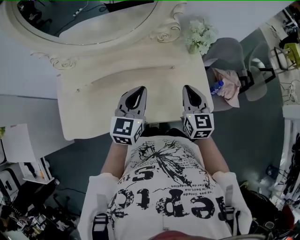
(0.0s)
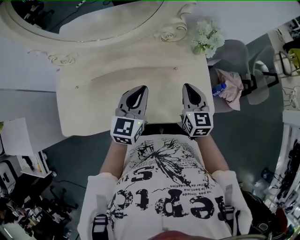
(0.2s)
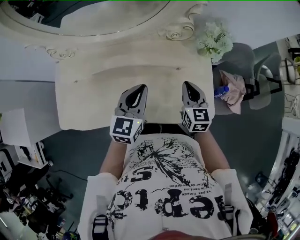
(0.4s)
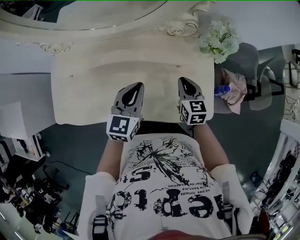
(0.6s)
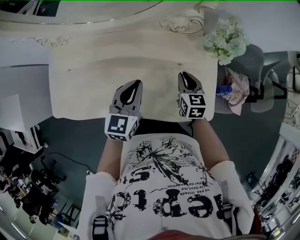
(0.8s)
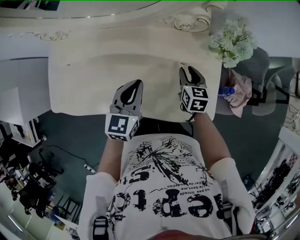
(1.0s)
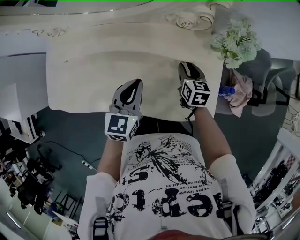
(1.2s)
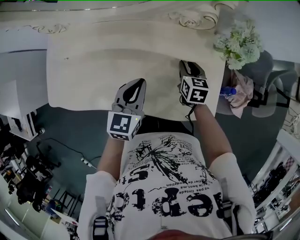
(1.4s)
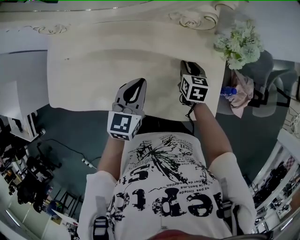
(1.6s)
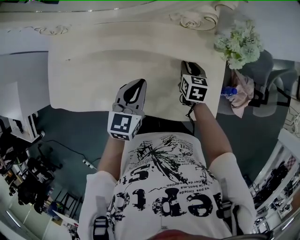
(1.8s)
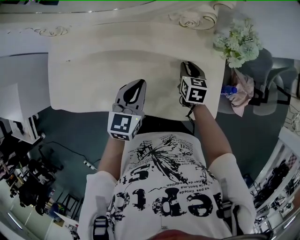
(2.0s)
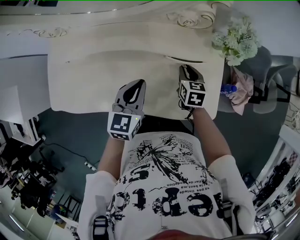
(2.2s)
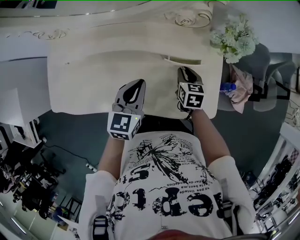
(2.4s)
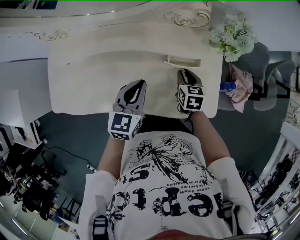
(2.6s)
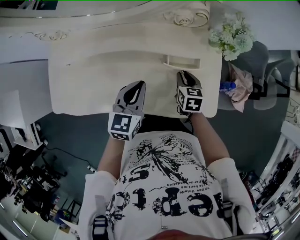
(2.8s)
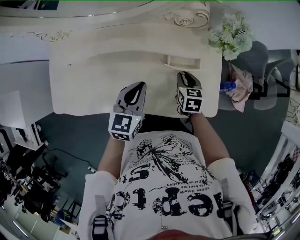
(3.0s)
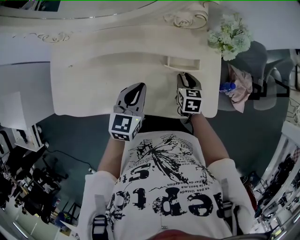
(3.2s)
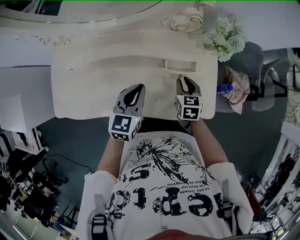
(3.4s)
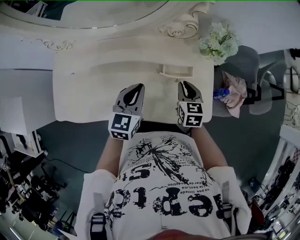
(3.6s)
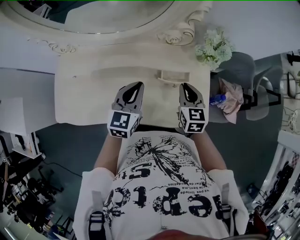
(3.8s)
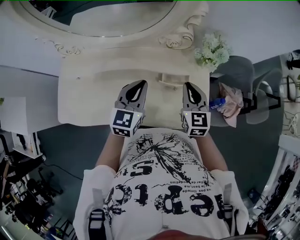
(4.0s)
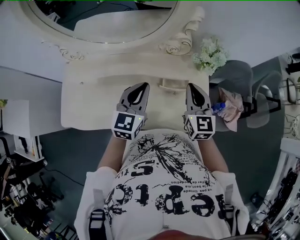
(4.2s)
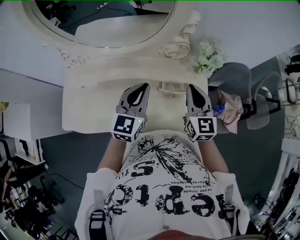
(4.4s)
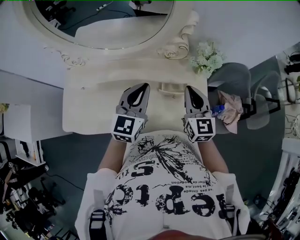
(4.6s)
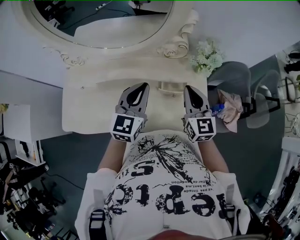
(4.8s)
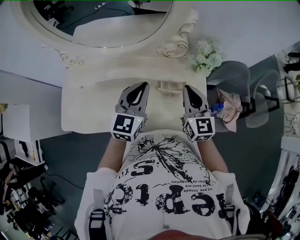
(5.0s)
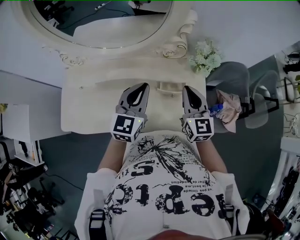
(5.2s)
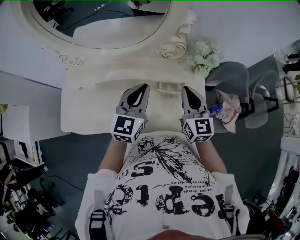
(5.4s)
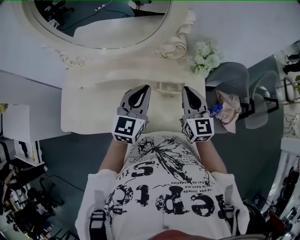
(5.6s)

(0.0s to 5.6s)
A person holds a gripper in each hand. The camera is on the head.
0.0s - 1.4s: The right gripper moves downward and forward, some 25 cm, turns by some 30 degrees, and opens its fingers, while the left gripper moves downward, about 10 cm.
1.4s - 2.8s: The right gripper shifts some 5 cm backward.
2.8s - 4.2s: The right gripper heads upward, covering about 25 cm, and points its fingers roughly 30 degrees further upward, while the left gripper goes roughly 10 cm upward.
4.2s - 5.6s: The grippers make only small movements.

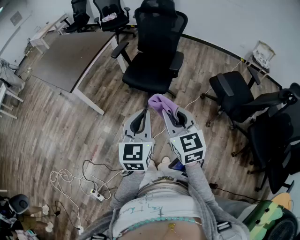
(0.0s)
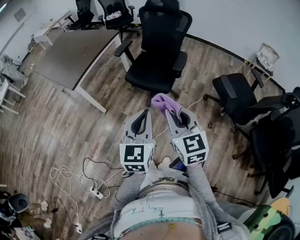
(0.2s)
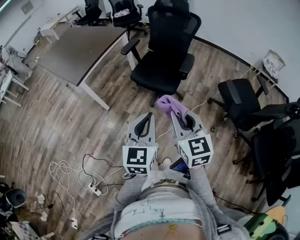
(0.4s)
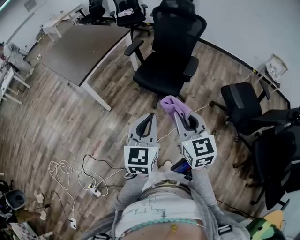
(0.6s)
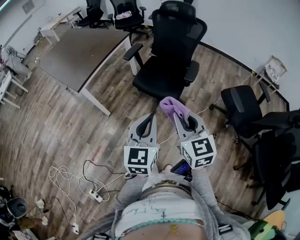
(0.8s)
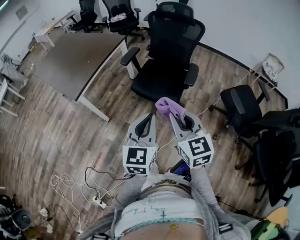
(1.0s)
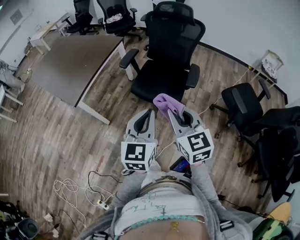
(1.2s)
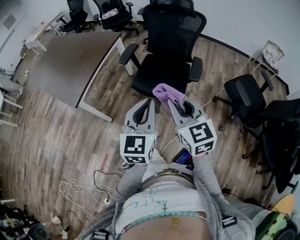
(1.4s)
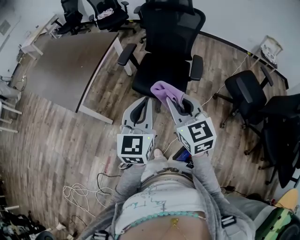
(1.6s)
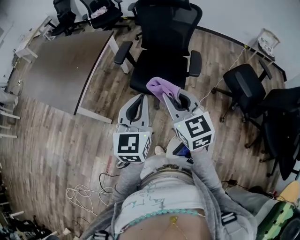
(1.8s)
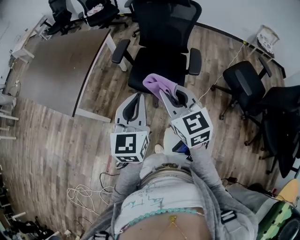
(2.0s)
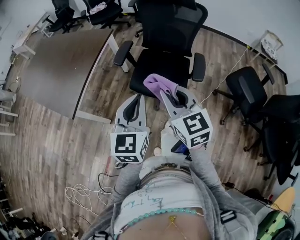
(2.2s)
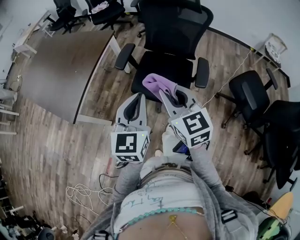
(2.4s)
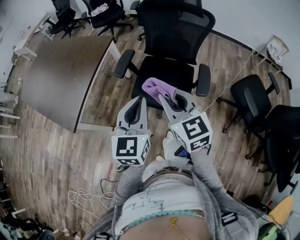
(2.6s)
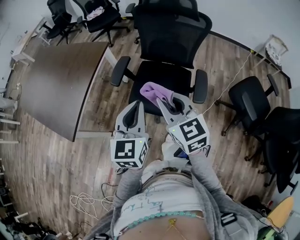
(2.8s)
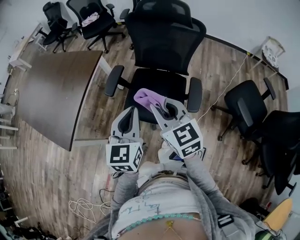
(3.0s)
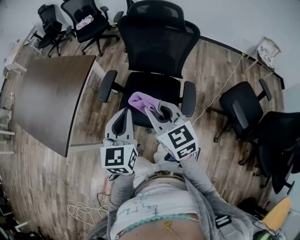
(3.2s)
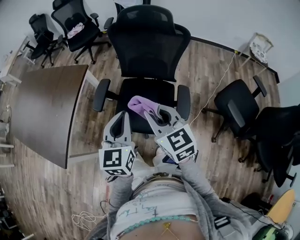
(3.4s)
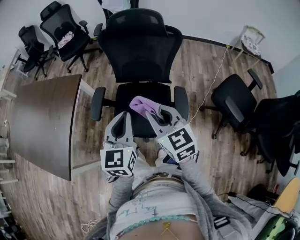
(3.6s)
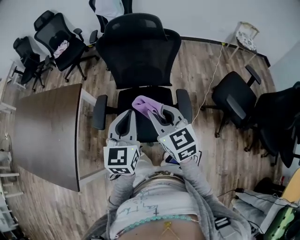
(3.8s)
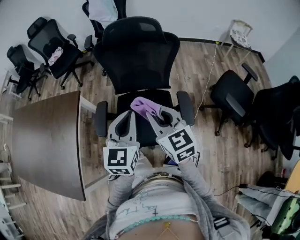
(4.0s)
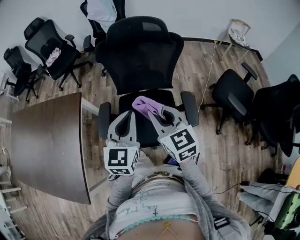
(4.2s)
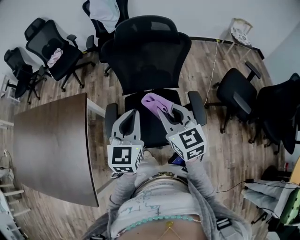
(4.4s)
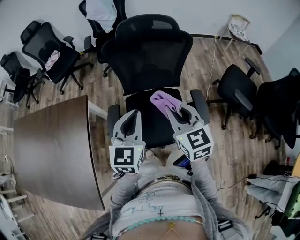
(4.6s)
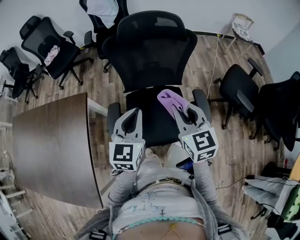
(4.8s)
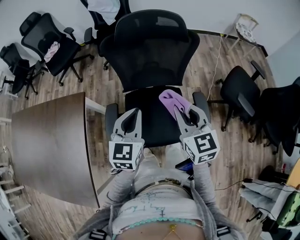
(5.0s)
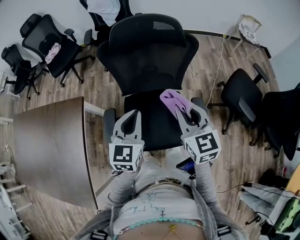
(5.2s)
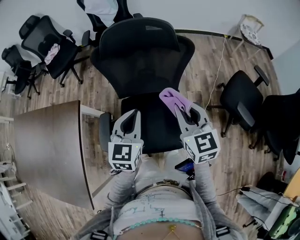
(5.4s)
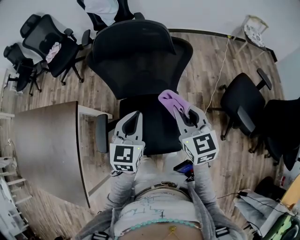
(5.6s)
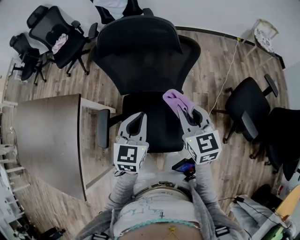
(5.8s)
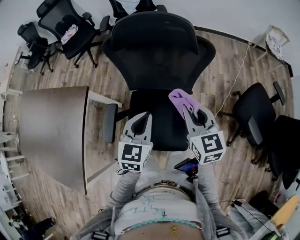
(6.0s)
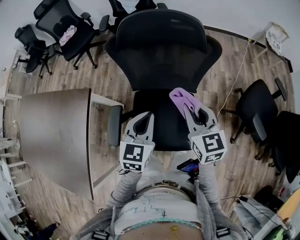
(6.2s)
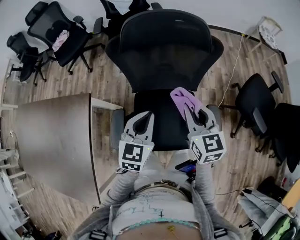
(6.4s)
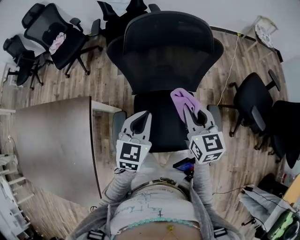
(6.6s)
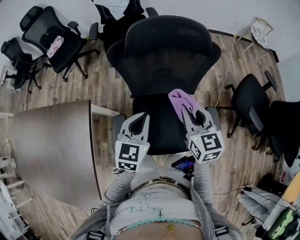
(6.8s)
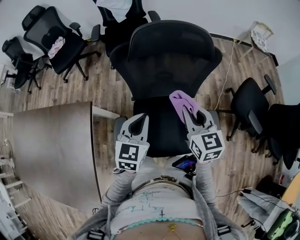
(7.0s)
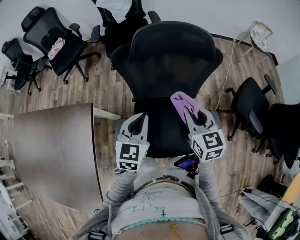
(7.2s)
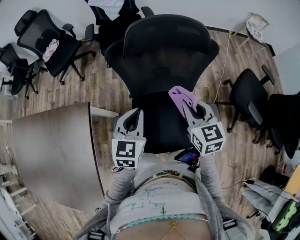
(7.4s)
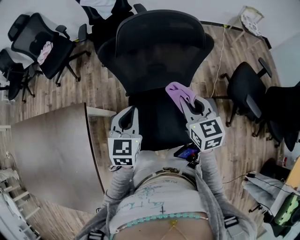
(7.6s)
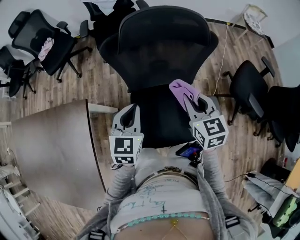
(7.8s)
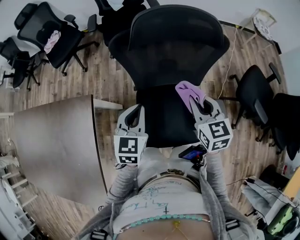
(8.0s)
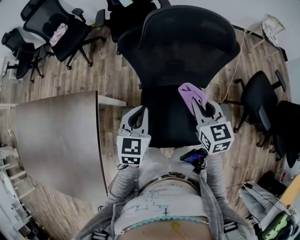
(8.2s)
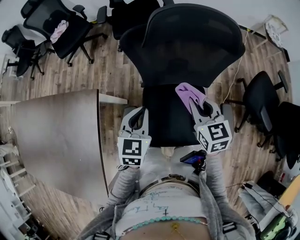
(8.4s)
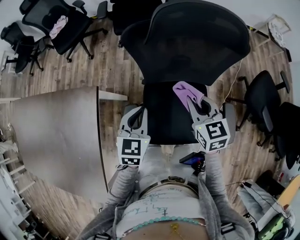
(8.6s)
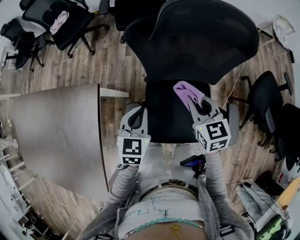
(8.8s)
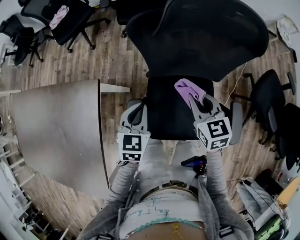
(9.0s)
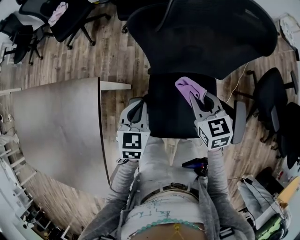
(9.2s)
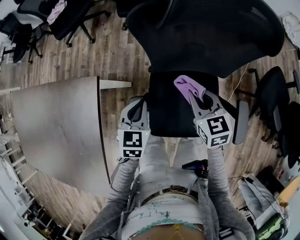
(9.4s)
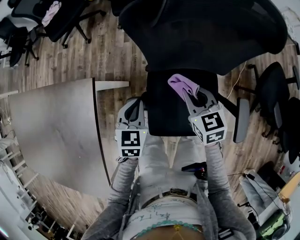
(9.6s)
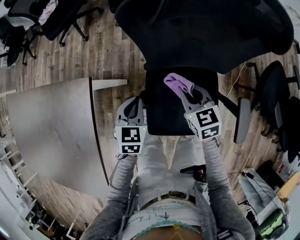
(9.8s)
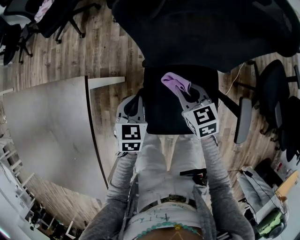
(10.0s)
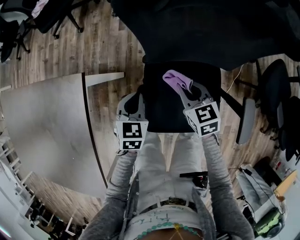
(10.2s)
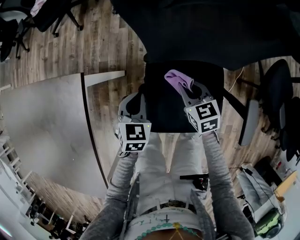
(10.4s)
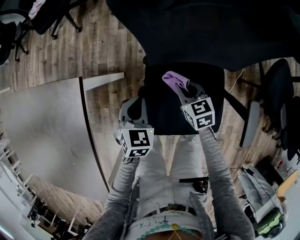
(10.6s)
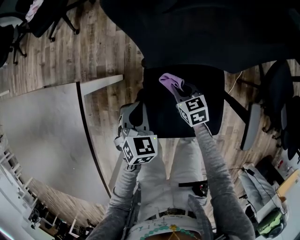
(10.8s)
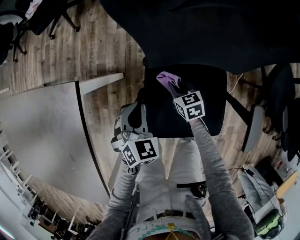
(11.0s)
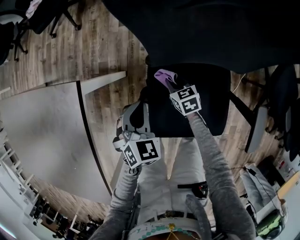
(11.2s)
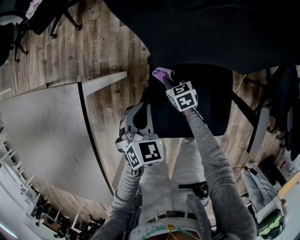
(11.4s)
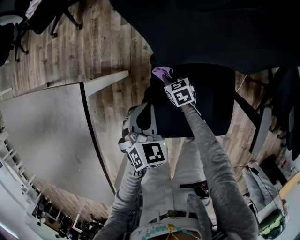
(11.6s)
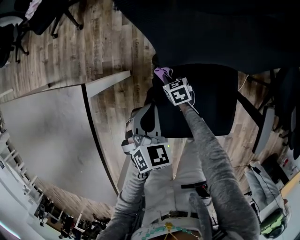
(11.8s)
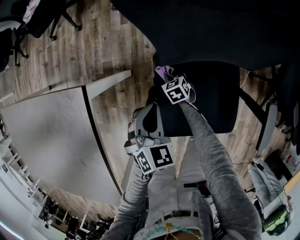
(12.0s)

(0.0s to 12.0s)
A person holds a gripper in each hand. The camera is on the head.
0.0s - 1.6s: The grippers both shift forward by roughly 25 cm.
1.6s - 3.0s: Both grippers move forward, approximately 25 cm.
3.0s - 4.4s: The left gripper shifts by about 20 cm, and rotates roughly 30 degrees. The right gripper shifts by roughly 15 cm, and swivels some 30 degrees.
4.4s - 6.0s: The right gripper shifts roughly 20 cm forward, to the right and downward; the left gripper moves forward, downward and to the right, some 15 cm.
6.0s - 7.6s: The right gripper travels to the left by roughly 10 cm. Meanwhile the left gripper goes roughly 15 cm to the left.
7.6s - 9.0s: The two grippers go approximately 10 cm downward and to the left.
9.0s - 10.4s: The grippers both shift downward by about 15 cm.
10.4s - 12.0s: The right gripper travels downward by roughly 25 cm.

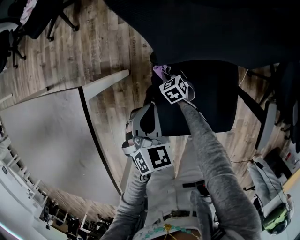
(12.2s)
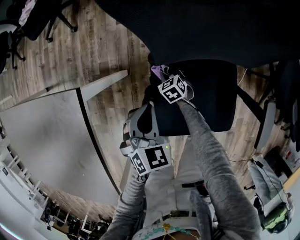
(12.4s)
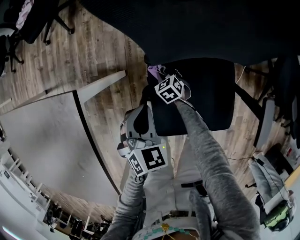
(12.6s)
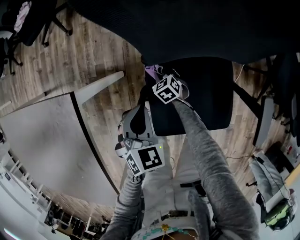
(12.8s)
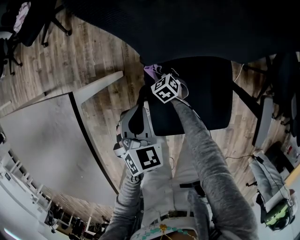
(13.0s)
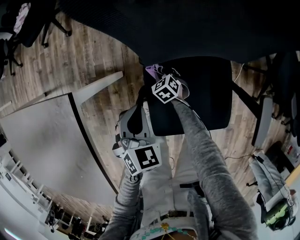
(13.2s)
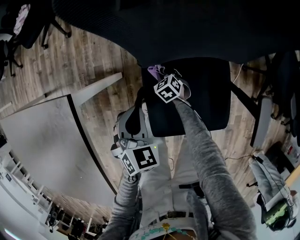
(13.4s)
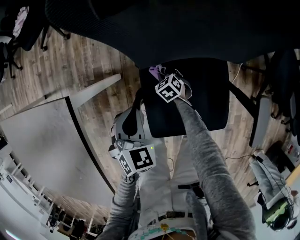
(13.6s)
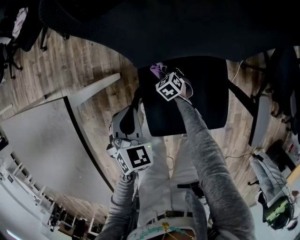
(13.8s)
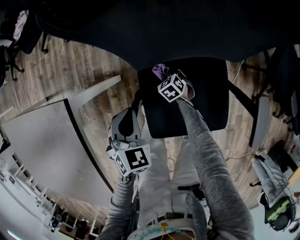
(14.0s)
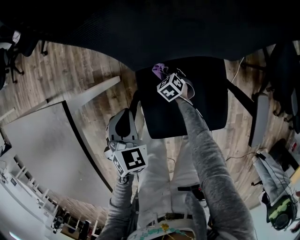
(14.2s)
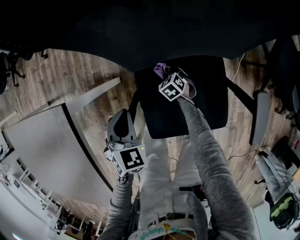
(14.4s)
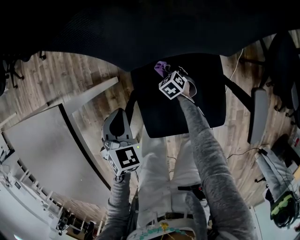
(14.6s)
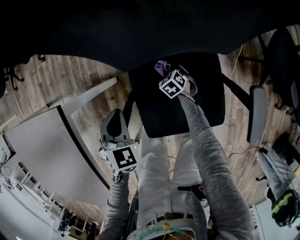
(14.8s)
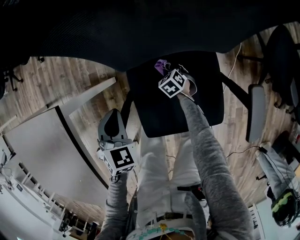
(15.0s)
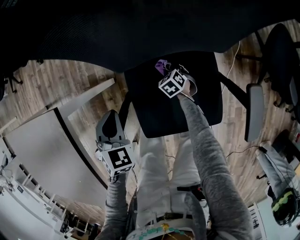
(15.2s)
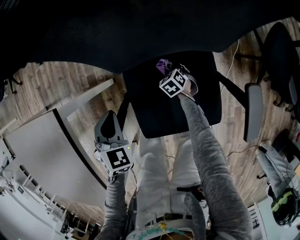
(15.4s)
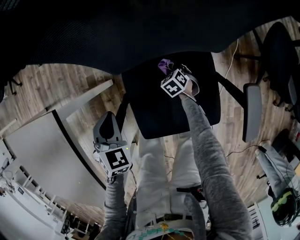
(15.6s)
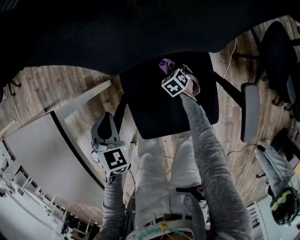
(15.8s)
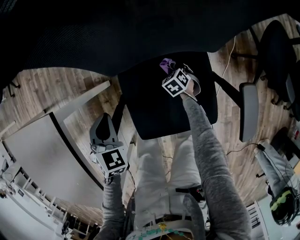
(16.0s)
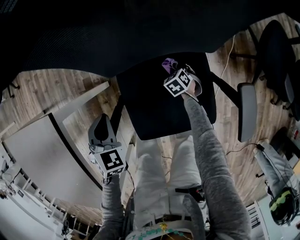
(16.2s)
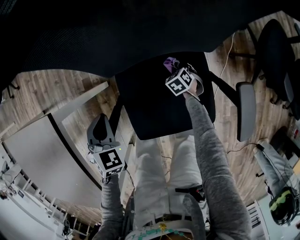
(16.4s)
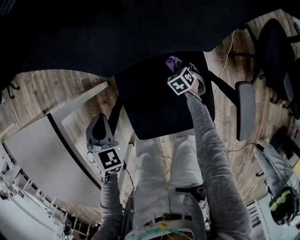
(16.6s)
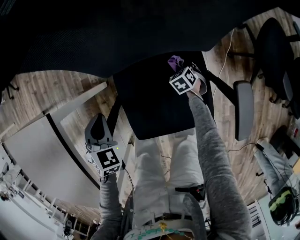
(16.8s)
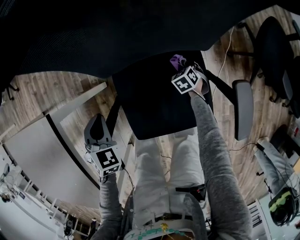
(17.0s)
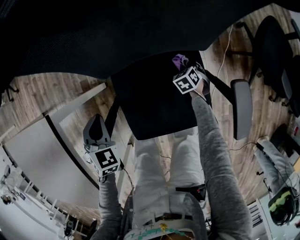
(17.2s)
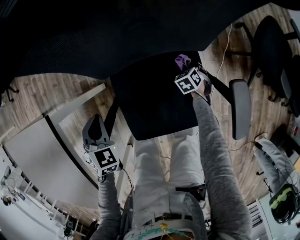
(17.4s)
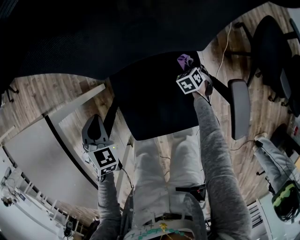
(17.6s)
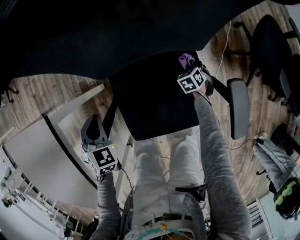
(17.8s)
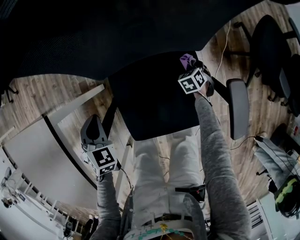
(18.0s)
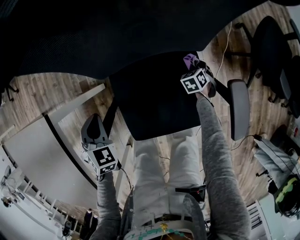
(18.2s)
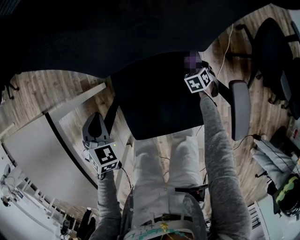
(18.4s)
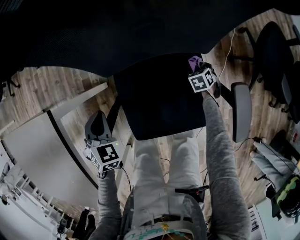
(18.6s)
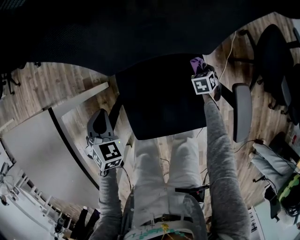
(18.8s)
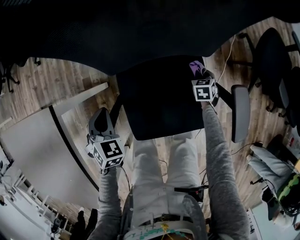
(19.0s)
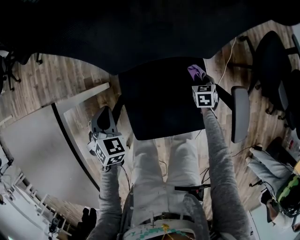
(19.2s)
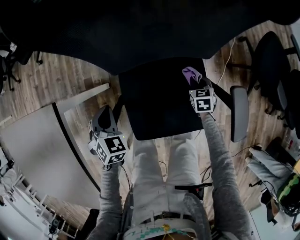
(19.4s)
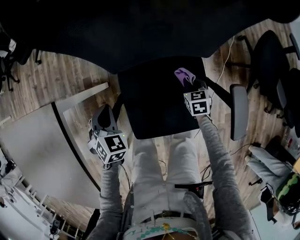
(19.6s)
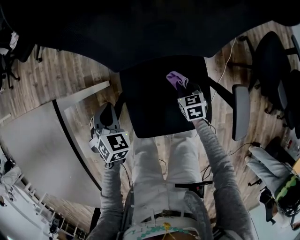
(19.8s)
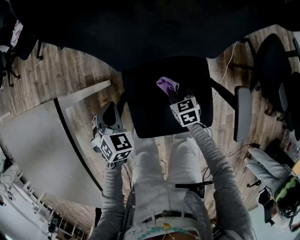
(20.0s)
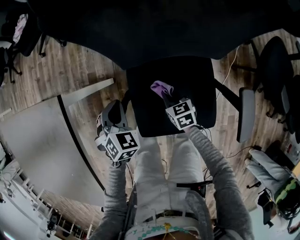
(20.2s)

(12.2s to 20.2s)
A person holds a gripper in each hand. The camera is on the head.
12.2s - 13.8s: The right gripper travels to the right by some 5 cm.
13.8s - 15.4s: The right gripper goes roughly 10 cm to the right.
15.4s - 17.0s: The right gripper heads to the right, covering about 15 cm.
17.0s - 18.6s: The right gripper moves to the right, about 10 cm.
18.6s - 20.2s: The right gripper moves roughly 30 cm, and rotates some 40 degrees.
